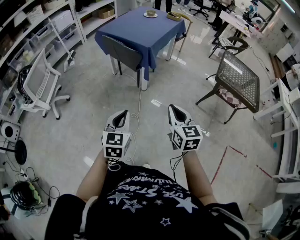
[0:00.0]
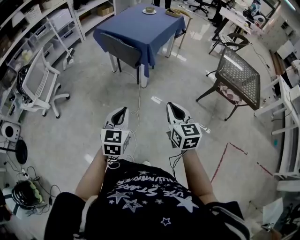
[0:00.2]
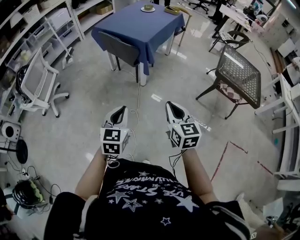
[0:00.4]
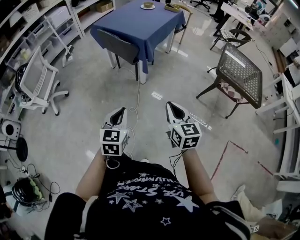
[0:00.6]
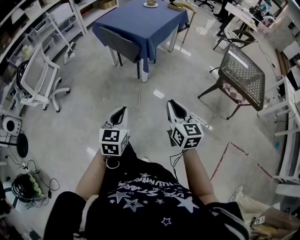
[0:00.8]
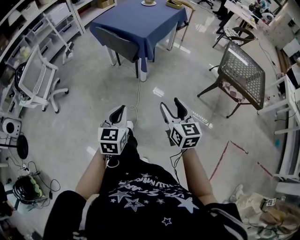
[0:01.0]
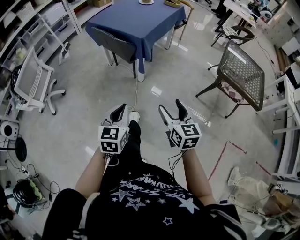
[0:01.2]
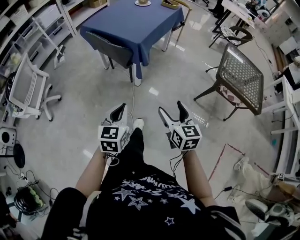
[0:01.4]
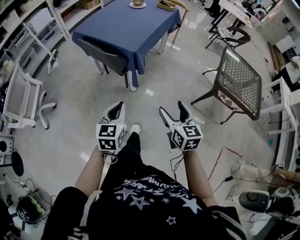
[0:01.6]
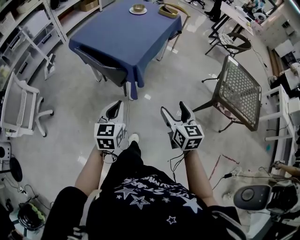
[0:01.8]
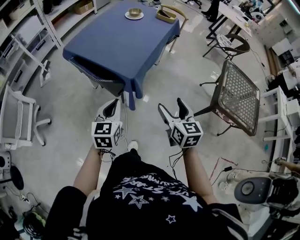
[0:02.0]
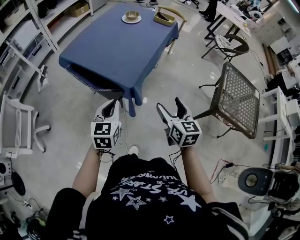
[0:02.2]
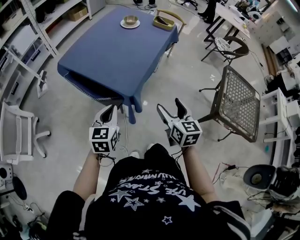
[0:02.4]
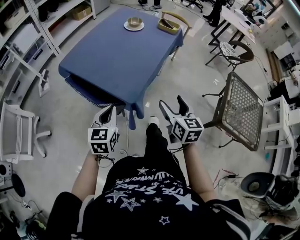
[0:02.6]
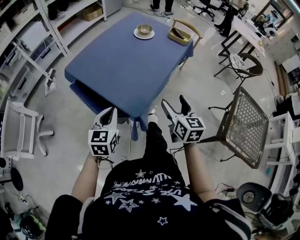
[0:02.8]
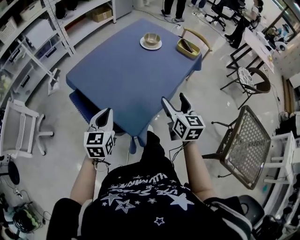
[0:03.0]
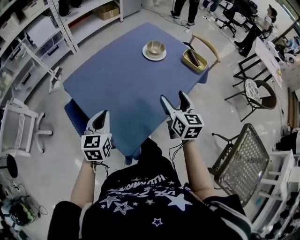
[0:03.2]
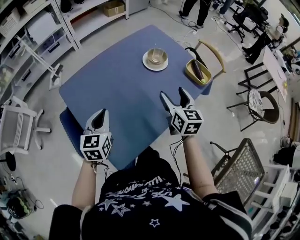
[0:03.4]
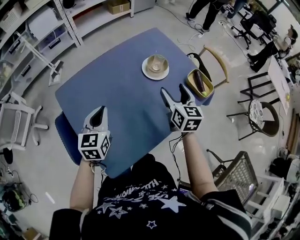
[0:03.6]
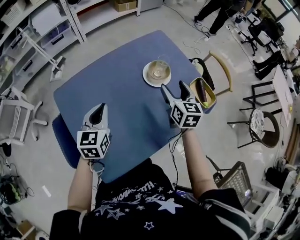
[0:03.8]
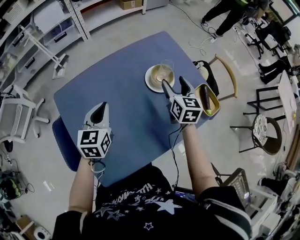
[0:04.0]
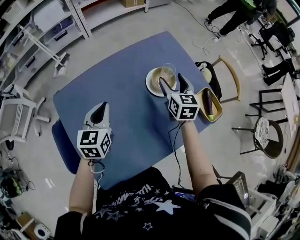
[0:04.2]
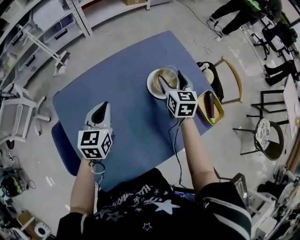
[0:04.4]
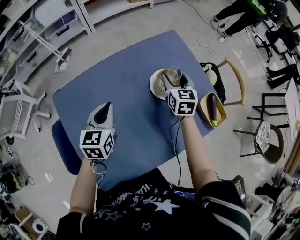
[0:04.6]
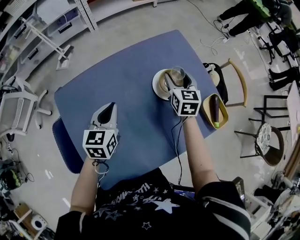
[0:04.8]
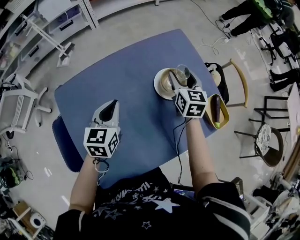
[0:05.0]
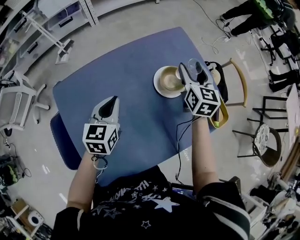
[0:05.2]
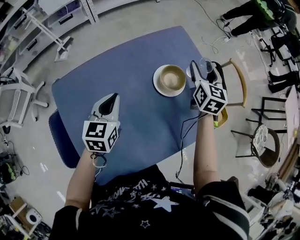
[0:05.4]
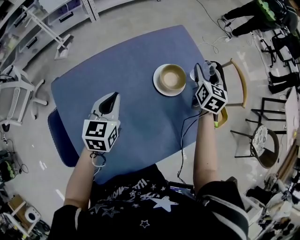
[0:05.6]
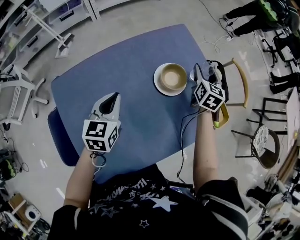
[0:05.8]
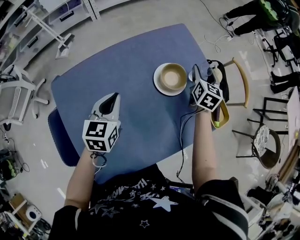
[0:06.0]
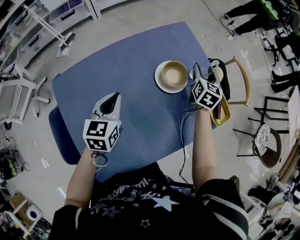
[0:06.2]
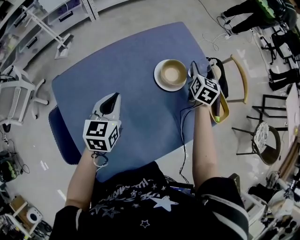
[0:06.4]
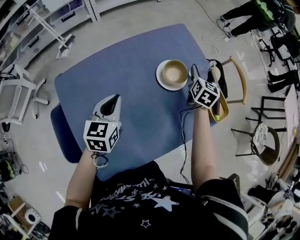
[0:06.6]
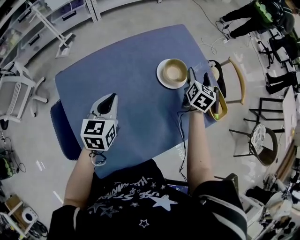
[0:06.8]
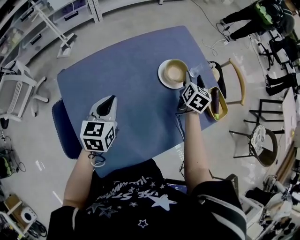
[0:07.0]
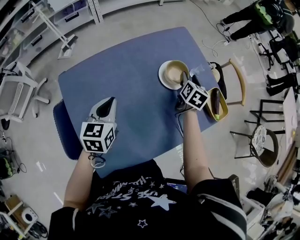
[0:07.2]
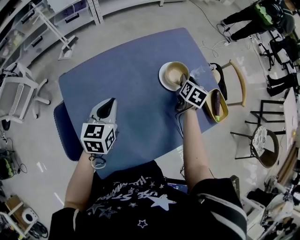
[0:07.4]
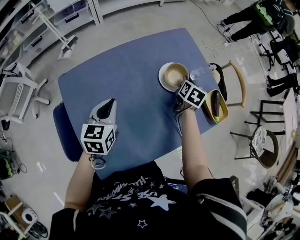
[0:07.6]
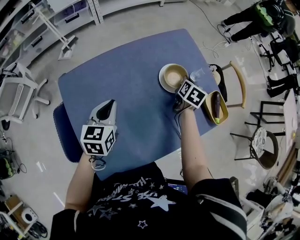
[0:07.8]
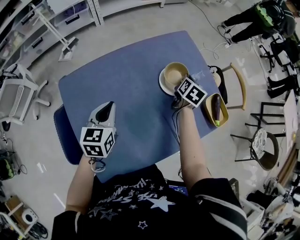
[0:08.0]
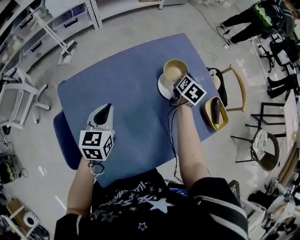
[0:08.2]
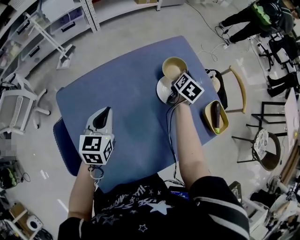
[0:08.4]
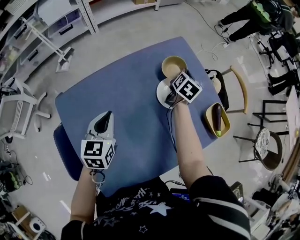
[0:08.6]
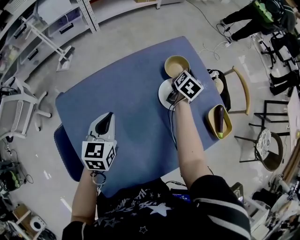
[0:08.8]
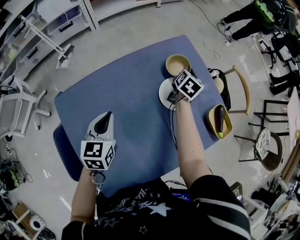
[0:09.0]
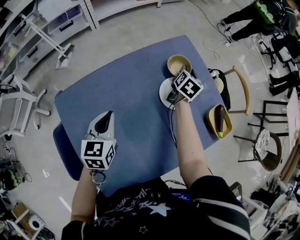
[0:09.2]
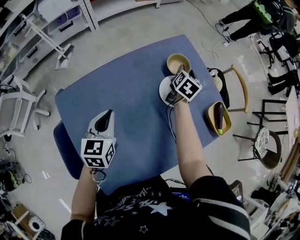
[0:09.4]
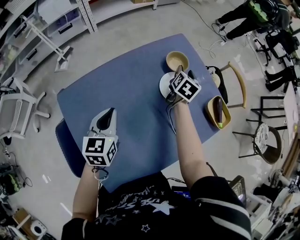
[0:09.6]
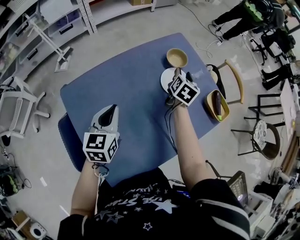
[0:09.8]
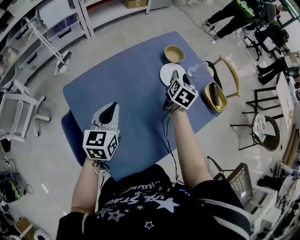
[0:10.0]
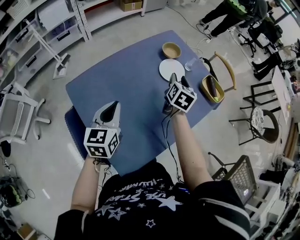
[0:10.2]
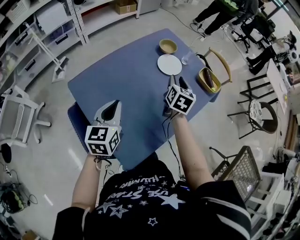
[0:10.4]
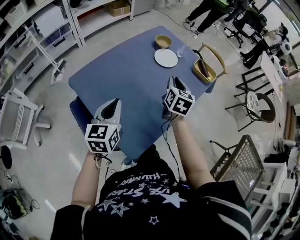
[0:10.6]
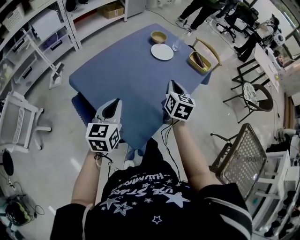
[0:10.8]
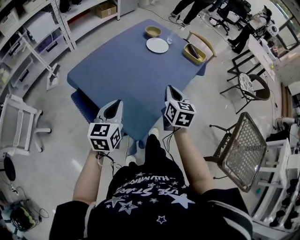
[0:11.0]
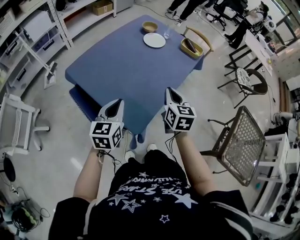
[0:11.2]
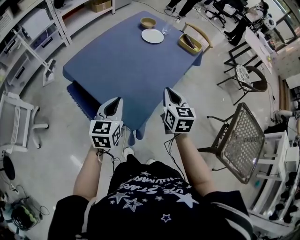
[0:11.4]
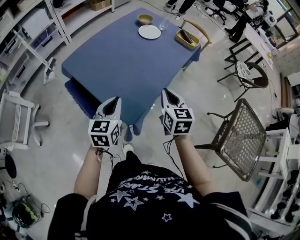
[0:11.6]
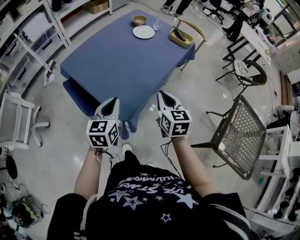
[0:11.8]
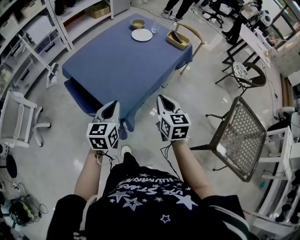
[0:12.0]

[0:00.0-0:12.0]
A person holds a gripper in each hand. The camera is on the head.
0:00.0 to 0:01.6: The grippers both shift forward by approximately 25 cm. The right gripper opens.
0:01.6 to 0:03.0: Both grippers are carried forward, some 50 cm.
0:03.0 to 0:04.4: Both grippers travel together forward, about 40 cm. The left gripper changes its angle by approximately 20 degrees; the right gripper swivels roughly 20 degrees.
0:04.4 to 0:06.0: The right gripper heads to the right and forward, covering about 10 cm.
0:06.0 to 0:07.6: The right gripper heads backward and downward, covering roughly 10 cm, and closes, while the left gripper shifts about 5 cm backward.
0:07.6 to 0:09.0: The right gripper moves forward, about 10 cm. The left gripper shifts some 5 cm forward.
0:09.0 to 0:10.4: The right gripper is displaced backward by about 30 cm, while the left gripper moves backward and upward, roughly 15 cm.
0:10.4 to 0:12.0: The left gripper goes about 30 cm backward and to the right. The right gripper is displaced backward by approximately 40 cm, and closes.

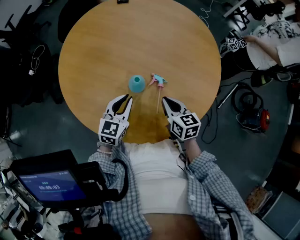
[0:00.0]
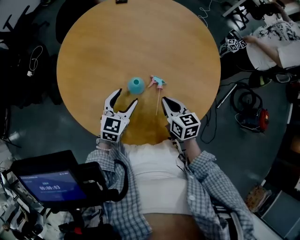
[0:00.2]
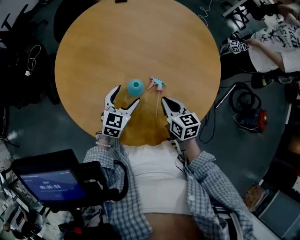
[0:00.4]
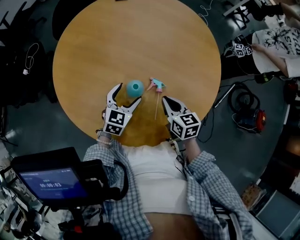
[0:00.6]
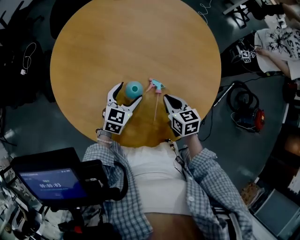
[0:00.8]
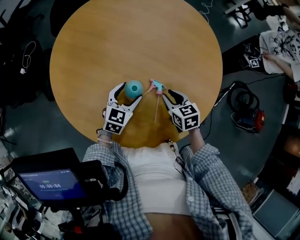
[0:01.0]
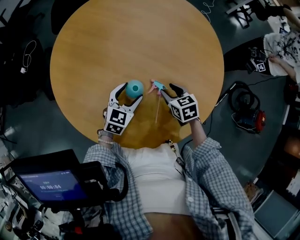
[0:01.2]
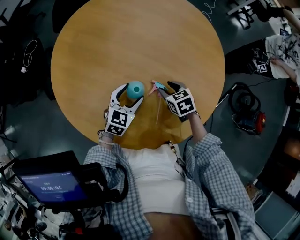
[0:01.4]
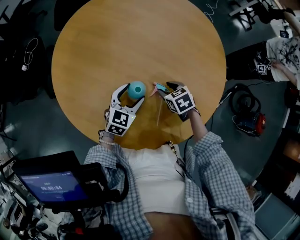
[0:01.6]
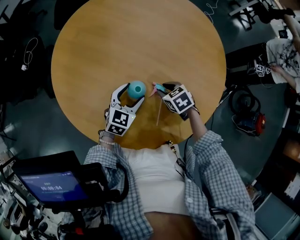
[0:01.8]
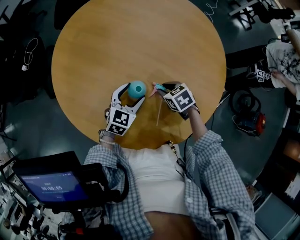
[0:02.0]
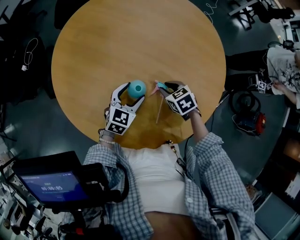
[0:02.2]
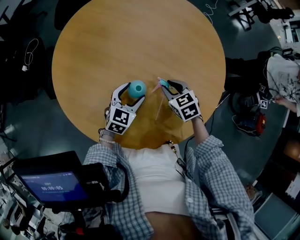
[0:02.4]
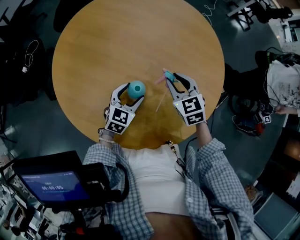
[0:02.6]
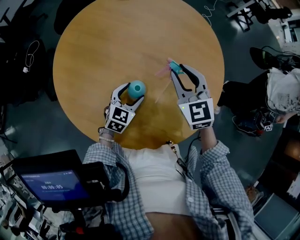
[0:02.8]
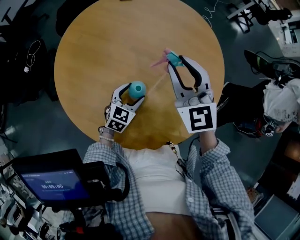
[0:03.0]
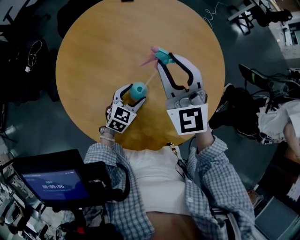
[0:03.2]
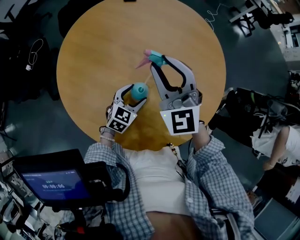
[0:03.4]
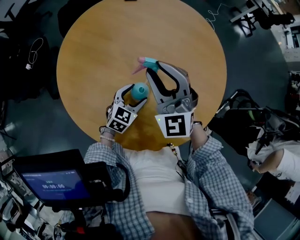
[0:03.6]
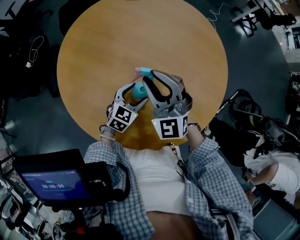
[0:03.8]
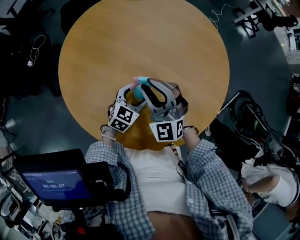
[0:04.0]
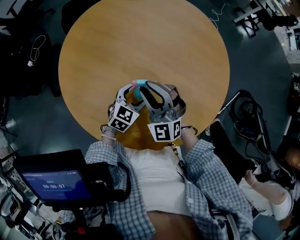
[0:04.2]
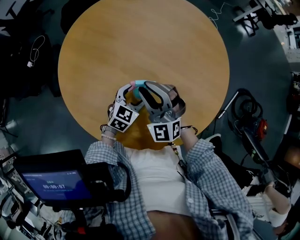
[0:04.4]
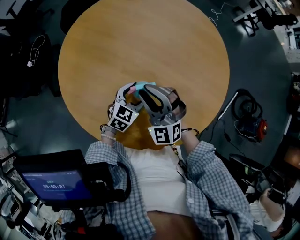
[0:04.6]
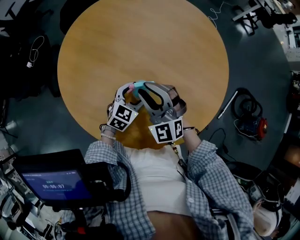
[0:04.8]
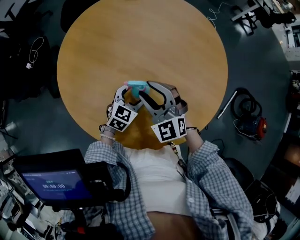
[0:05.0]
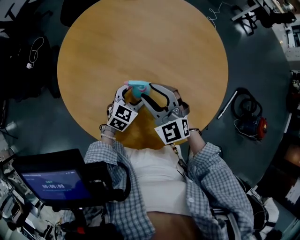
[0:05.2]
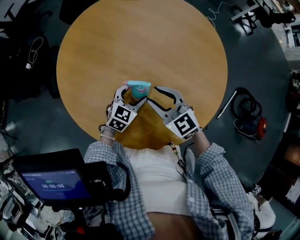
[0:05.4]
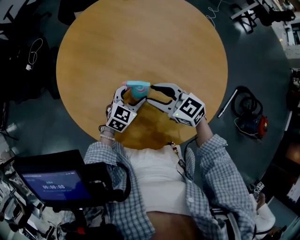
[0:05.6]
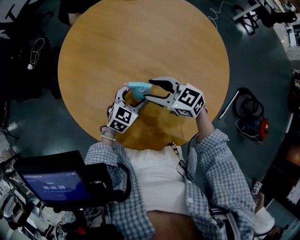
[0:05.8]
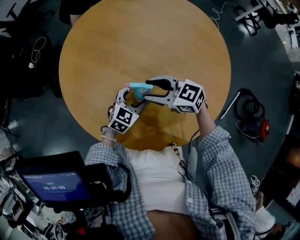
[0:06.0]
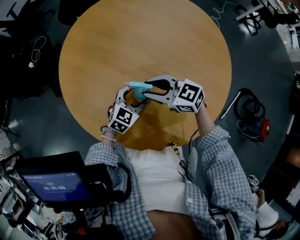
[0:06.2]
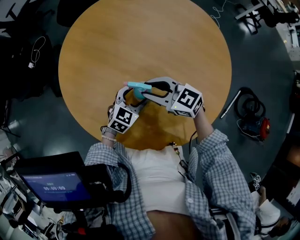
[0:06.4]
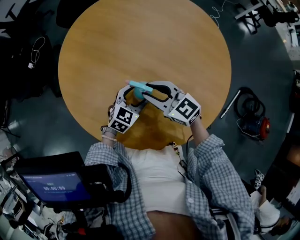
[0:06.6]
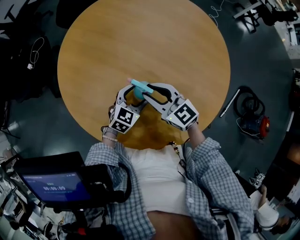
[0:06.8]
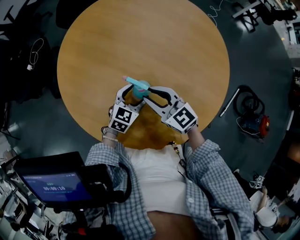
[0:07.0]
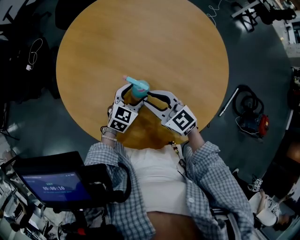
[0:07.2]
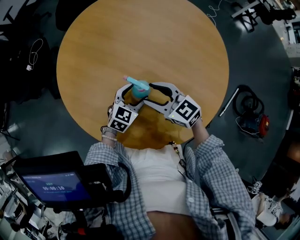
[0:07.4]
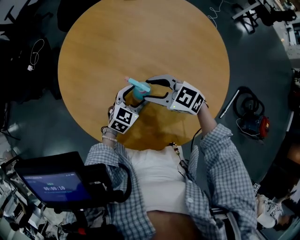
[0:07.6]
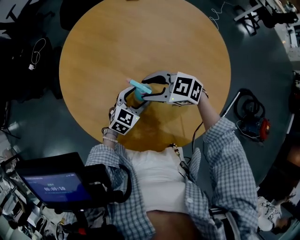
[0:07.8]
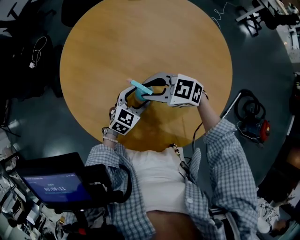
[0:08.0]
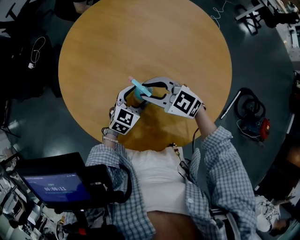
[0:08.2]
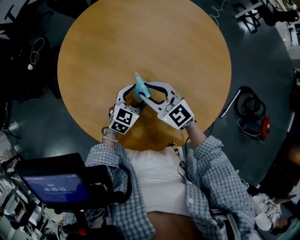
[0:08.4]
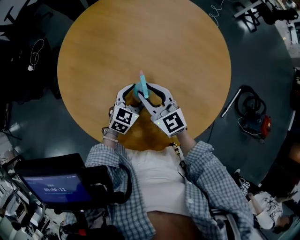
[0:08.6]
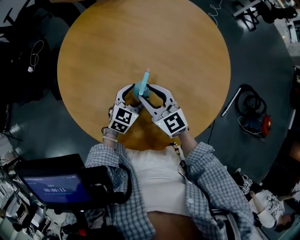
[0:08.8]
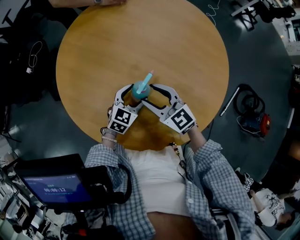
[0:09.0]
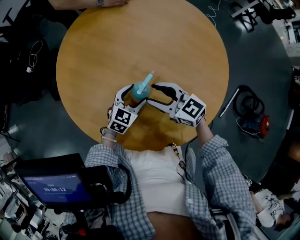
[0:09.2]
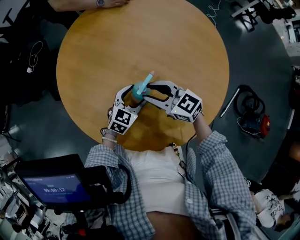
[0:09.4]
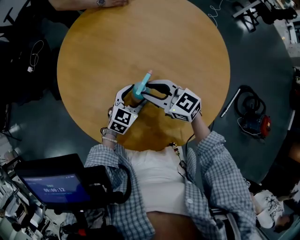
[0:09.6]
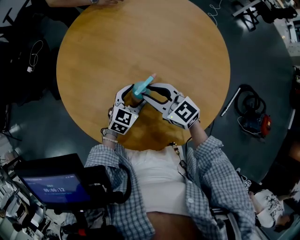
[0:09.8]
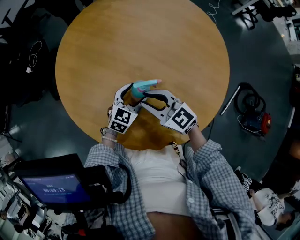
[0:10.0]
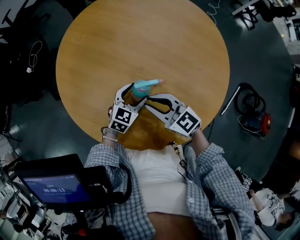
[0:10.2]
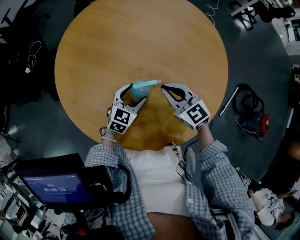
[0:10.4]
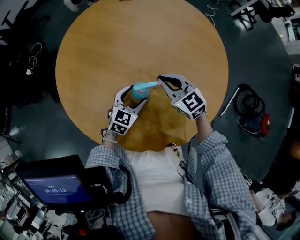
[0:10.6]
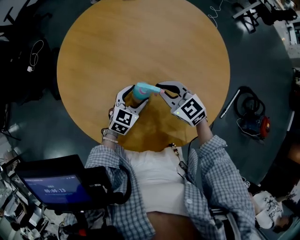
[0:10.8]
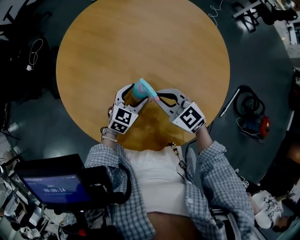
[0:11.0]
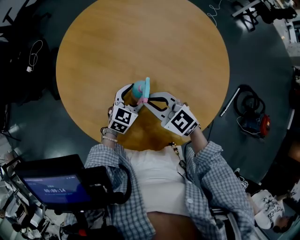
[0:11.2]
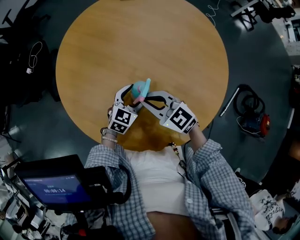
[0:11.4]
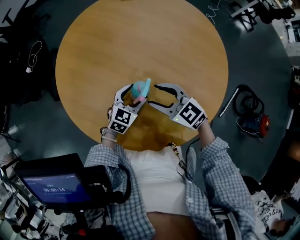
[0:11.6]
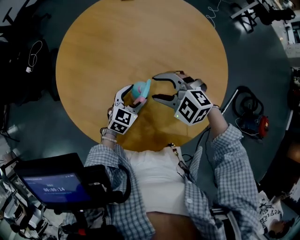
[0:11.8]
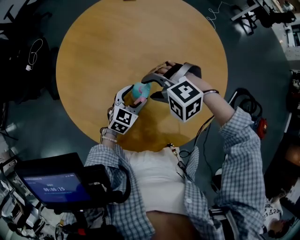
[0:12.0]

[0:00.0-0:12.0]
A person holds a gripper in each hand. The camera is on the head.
0:00.0 to 0:01.6: The two grippers go some 10 cm forward and downward. The right gripper changes its angle by roughly 40 degrees, and opens up. Meanwhile the left gripper opens its fingers.
0:01.6 to 0:03.0: The right gripper is displaced upward by roughly 30 cm, and tips its fingers upward by roughly 50 degrees.
0:03.0 to 0:04.4: The right gripper is displaced downward, backward and to the left by approximately 15 cm, and turns by approximately 30 degrees.
0:04.4 to 0:06.0: The right gripper rotates roughly 70 degrees, and opens.
0:06.0 to 0:07.6: The right gripper closes, then opens again.
0:07.6 to 0:09.0: The right gripper turns by roughly 30 degrees.
0:09.0 to 0:10.4: The right gripper moves to the right, approximately 5 cm, and closes up.
0:10.4 to 0:12.0: The right gripper goes about 5 cm to the left, tips its fingers downward by some 40 degrees, and opens.
